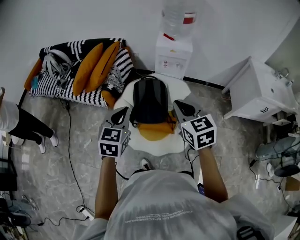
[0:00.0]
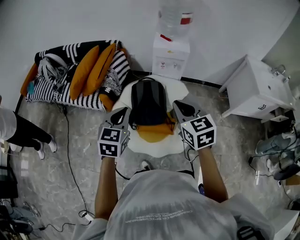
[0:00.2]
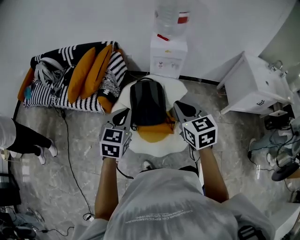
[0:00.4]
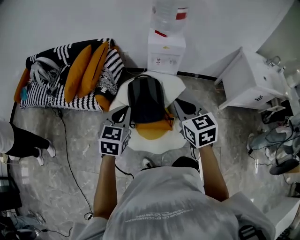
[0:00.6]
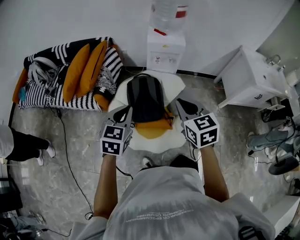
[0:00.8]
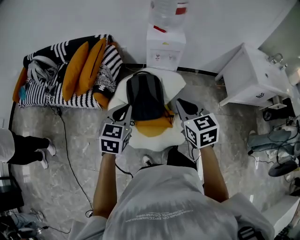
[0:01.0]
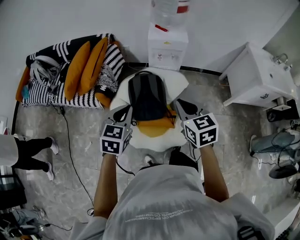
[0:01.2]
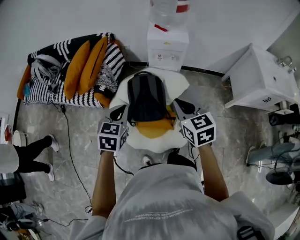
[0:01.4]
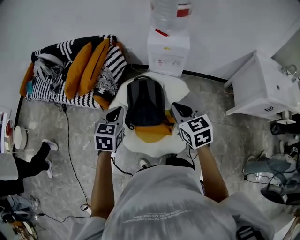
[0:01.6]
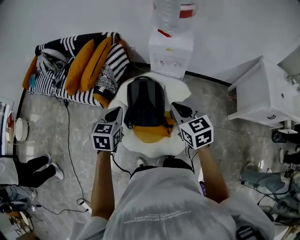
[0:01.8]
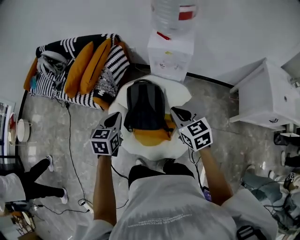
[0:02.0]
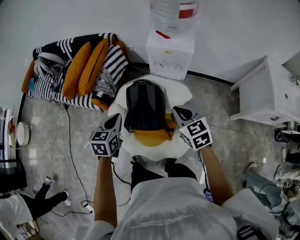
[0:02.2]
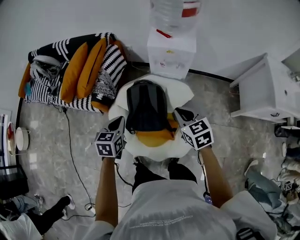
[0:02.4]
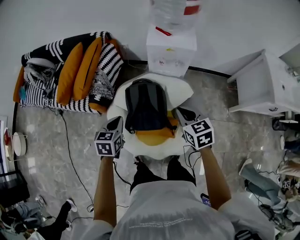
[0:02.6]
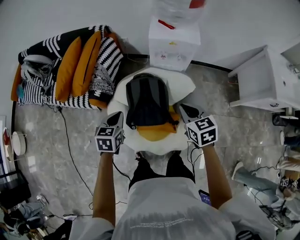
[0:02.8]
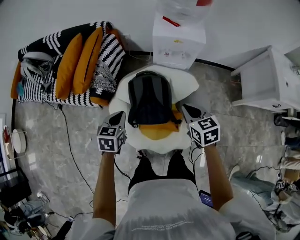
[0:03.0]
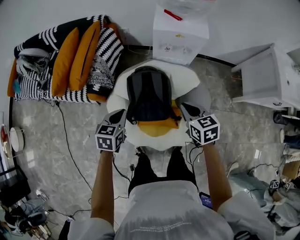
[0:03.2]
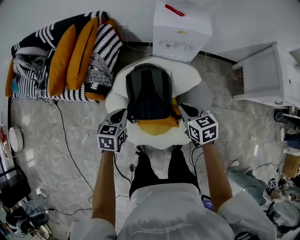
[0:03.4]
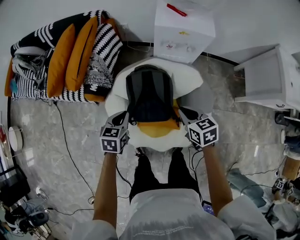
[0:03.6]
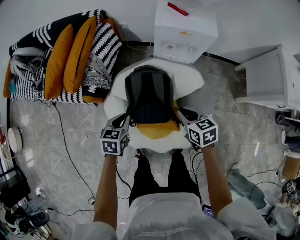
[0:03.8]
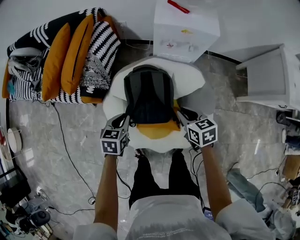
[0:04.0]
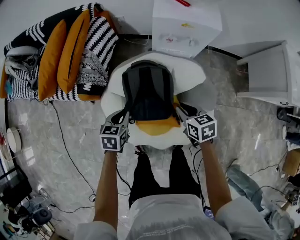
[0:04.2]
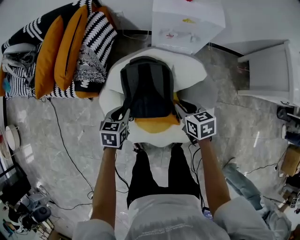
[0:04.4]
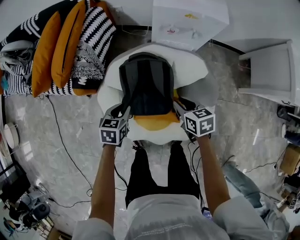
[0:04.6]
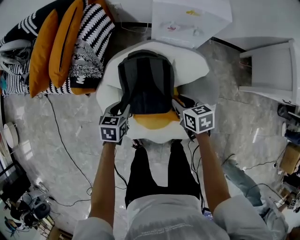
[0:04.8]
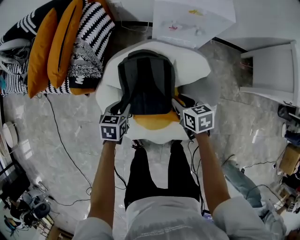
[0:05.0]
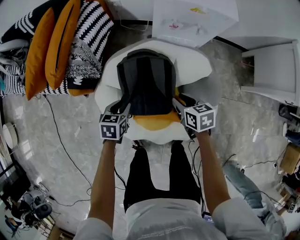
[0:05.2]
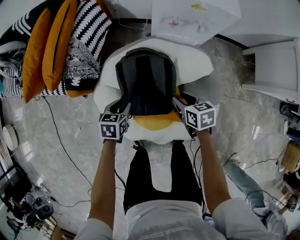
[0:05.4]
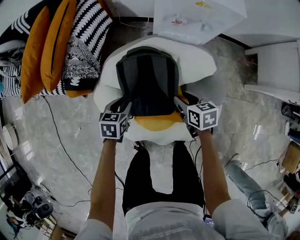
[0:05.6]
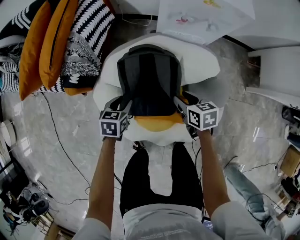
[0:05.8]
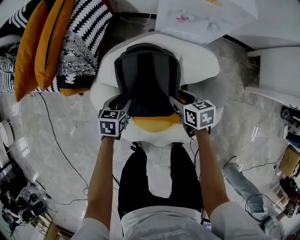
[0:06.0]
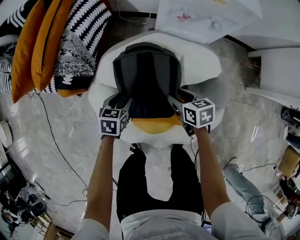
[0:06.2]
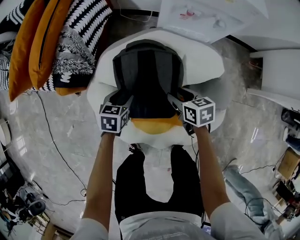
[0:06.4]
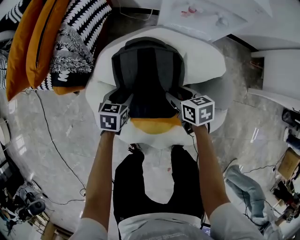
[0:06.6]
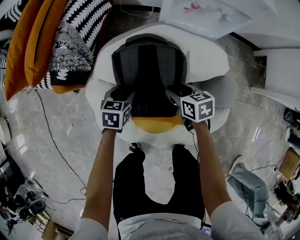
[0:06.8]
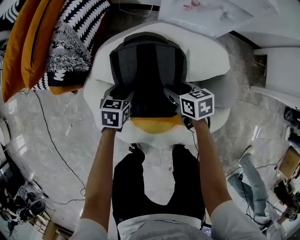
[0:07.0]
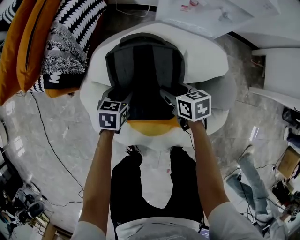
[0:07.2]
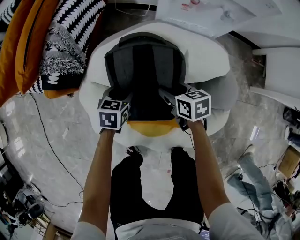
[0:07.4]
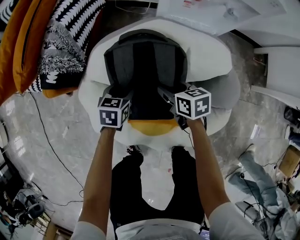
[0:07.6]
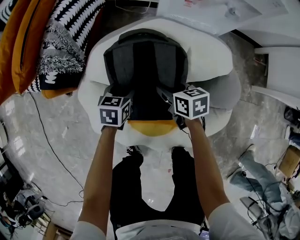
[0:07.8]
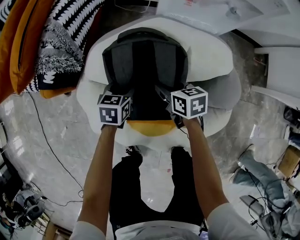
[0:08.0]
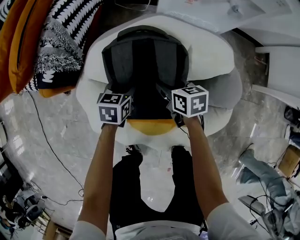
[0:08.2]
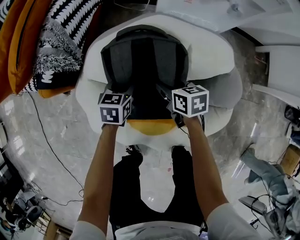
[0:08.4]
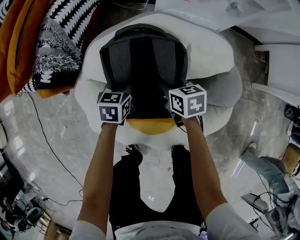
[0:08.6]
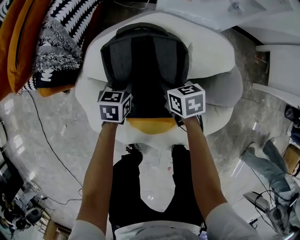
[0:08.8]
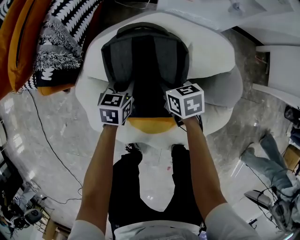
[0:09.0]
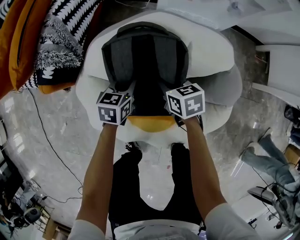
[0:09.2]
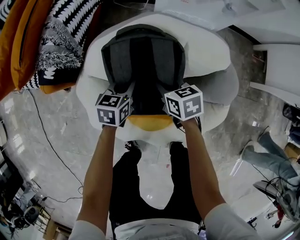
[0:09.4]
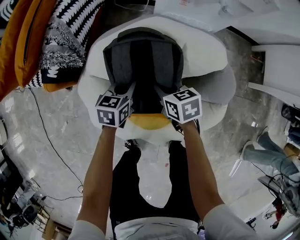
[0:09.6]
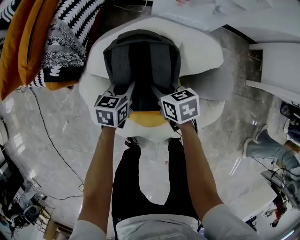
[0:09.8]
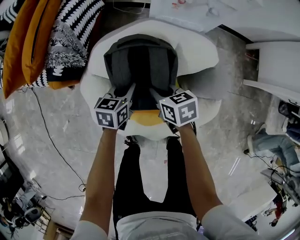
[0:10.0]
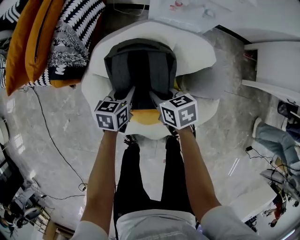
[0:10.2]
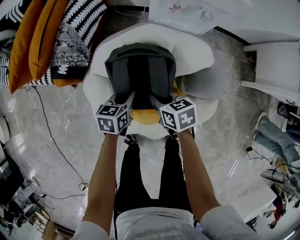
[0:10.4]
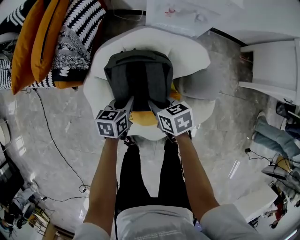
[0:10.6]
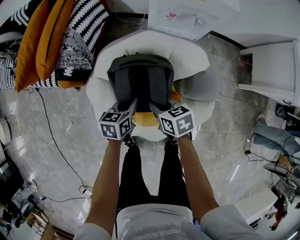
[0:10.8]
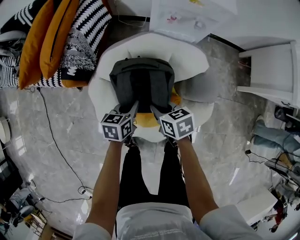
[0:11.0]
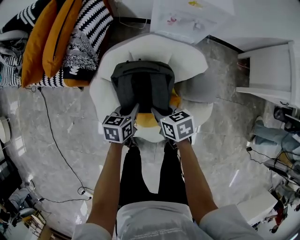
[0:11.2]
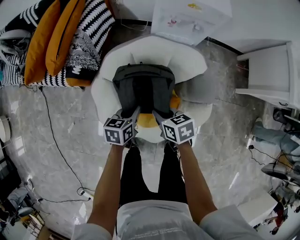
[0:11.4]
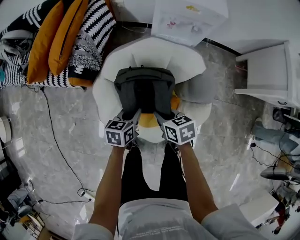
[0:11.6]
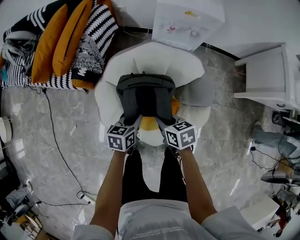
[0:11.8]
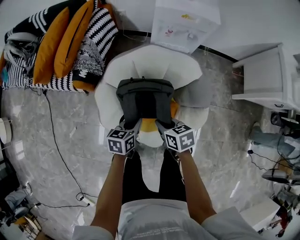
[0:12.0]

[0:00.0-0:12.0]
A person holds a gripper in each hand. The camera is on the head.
0:00.0 to 0:01.6: The right gripper travels forward, downward and to the right by about 15 cm; the left gripper heads forward and downward, covering some 15 cm.
0:01.6 to 0:03.0: Both grippers travel together downward and forward, about 15 cm.
0:03.0 to 0:04.4: Both grippers travel together downward, approximately 15 cm.
0:04.4 to 0:06.0: The two grippers go approximately 15 cm downward. The left gripper opens up, while the right gripper opens up.
0:06.0 to 0:07.6: Both grippers move downward, roughly 10 cm.
0:07.6 to 0:09.0: The left gripper closes its fingers. The right gripper closes up.
0:09.0 to 0:10.4: Both grippers move upward and backward, approximately 15 cm.
0:10.4 to 0:12.0: The grippers both shift backward and upward by some 15 cm.

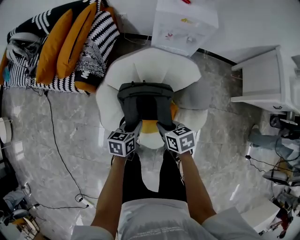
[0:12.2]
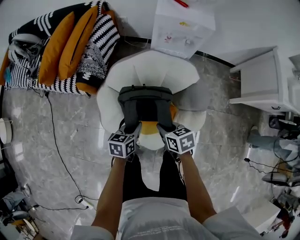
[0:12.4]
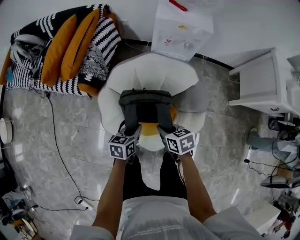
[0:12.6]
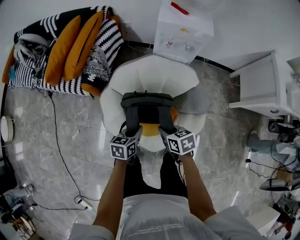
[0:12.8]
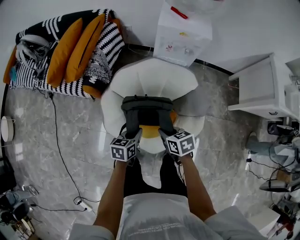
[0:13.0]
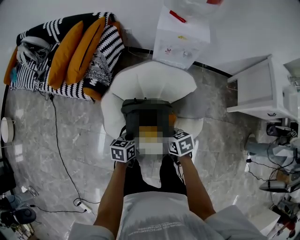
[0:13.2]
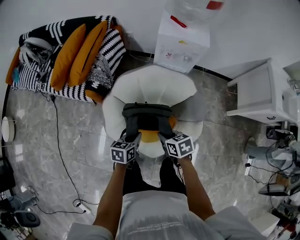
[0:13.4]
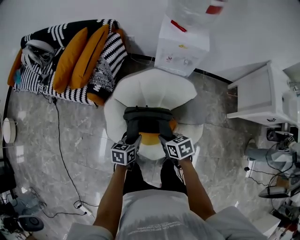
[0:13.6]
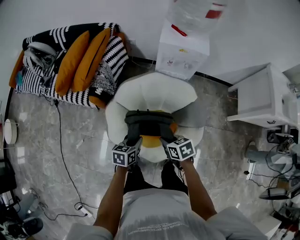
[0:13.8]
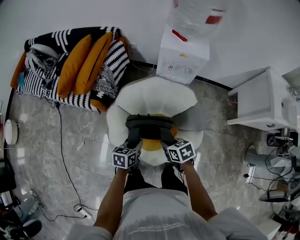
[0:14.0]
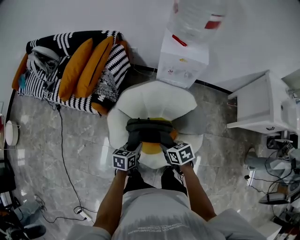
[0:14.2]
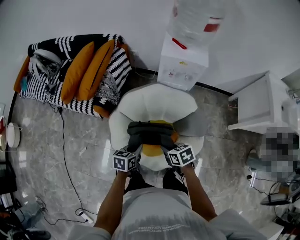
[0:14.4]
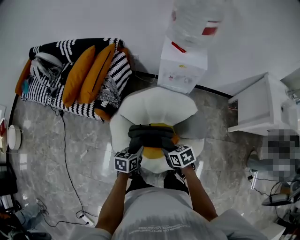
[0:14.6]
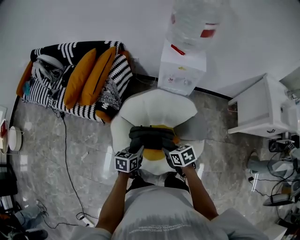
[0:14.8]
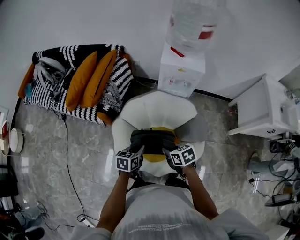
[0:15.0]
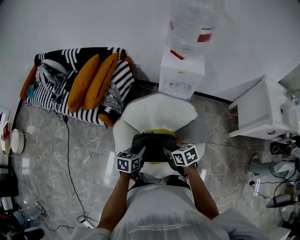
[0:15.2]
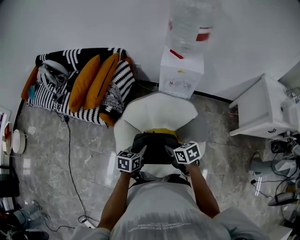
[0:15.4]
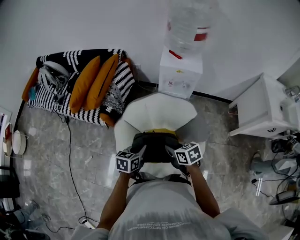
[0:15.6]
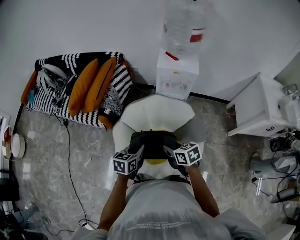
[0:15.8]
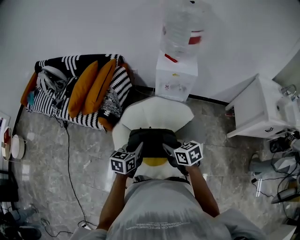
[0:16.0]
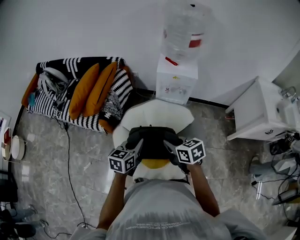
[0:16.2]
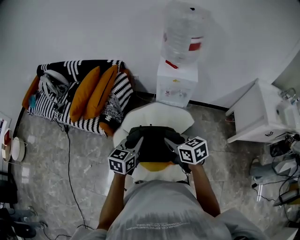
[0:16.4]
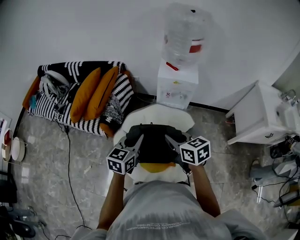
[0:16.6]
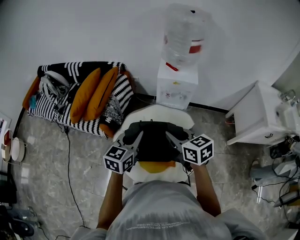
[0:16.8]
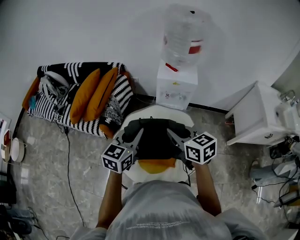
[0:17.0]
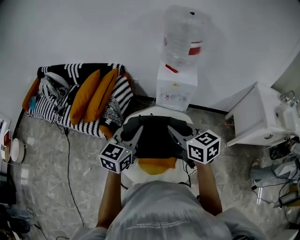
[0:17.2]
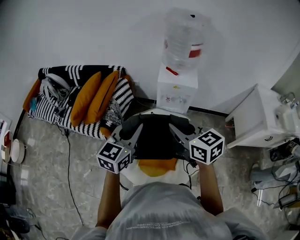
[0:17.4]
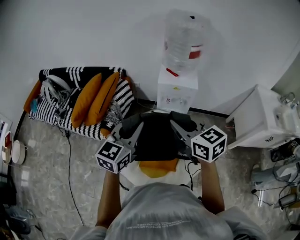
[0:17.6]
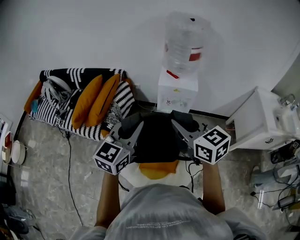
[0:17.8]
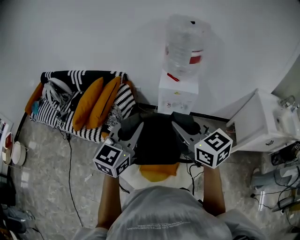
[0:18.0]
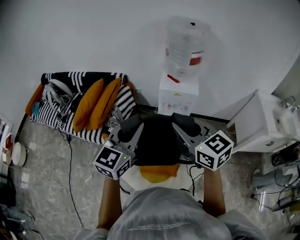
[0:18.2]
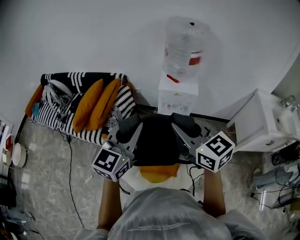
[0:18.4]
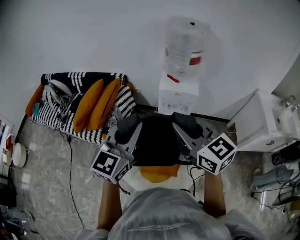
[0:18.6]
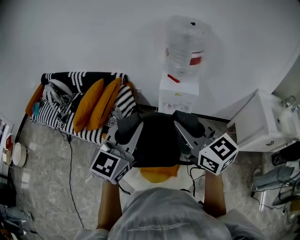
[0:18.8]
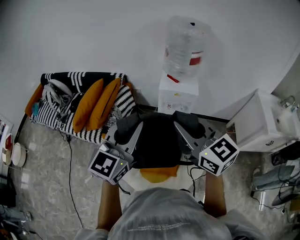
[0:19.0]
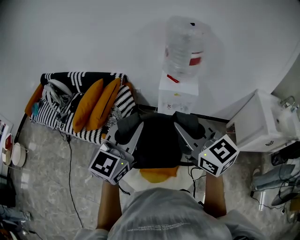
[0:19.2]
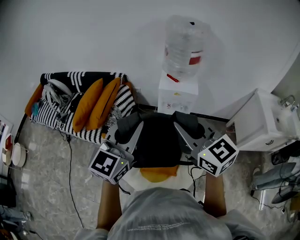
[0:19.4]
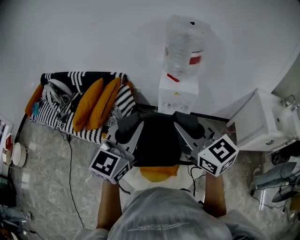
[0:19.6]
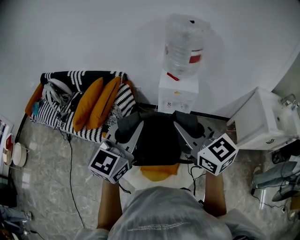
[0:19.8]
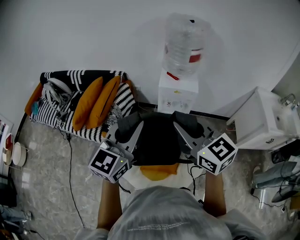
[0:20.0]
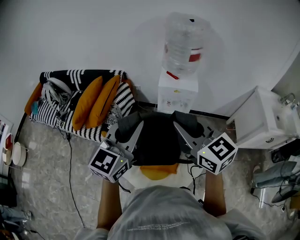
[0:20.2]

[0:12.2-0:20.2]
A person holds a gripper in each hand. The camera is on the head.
0:12.2 to 0:13.8: The grippers both shift upward by approximately 5 cm.
0:13.8 to 0:15.4: Both grippers move upward, about 5 cm.
0:15.4 to 0:17.0: Both grippers move upward, some 20 cm. The right gripper swivels some 30 degrees, while the left gripper swivels roughly 30 degrees.
0:17.0 to 0:18.6: Both grippers move upward, approximately 15 cm. The left gripper turns by approximately 20 degrees, while the right gripper swivels some 20 degrees.
0:18.6 to 0:20.2: Both grippers stay put.

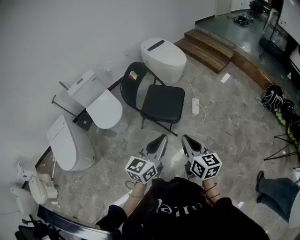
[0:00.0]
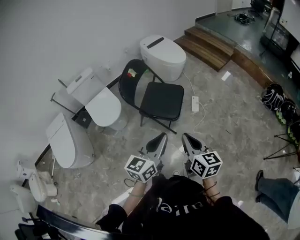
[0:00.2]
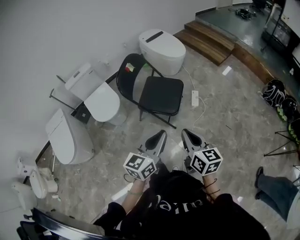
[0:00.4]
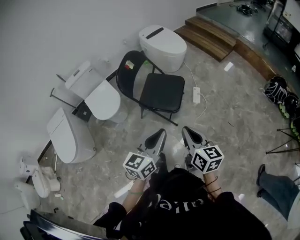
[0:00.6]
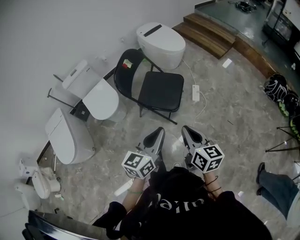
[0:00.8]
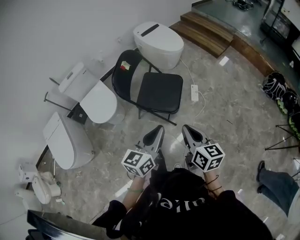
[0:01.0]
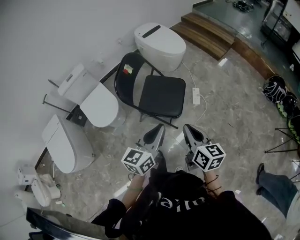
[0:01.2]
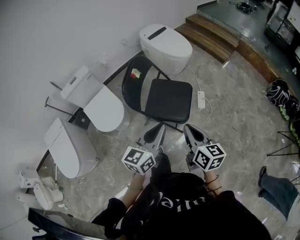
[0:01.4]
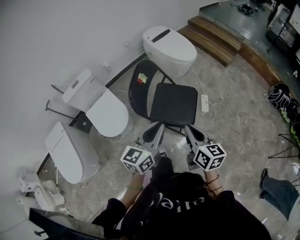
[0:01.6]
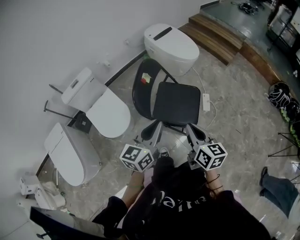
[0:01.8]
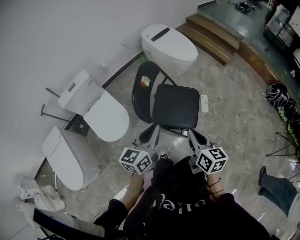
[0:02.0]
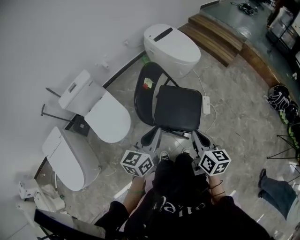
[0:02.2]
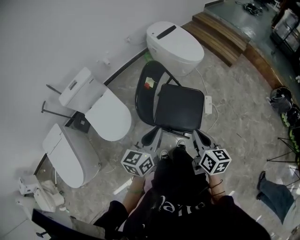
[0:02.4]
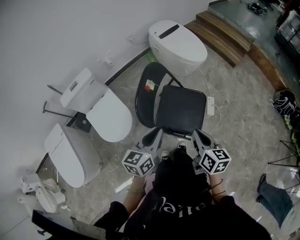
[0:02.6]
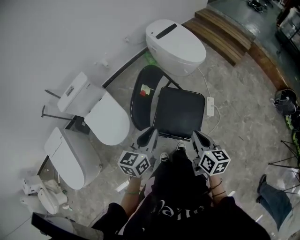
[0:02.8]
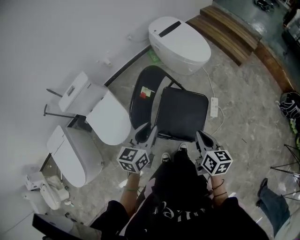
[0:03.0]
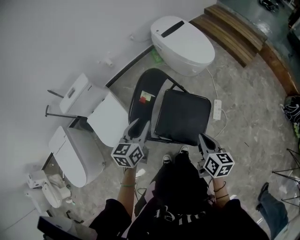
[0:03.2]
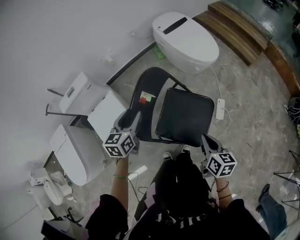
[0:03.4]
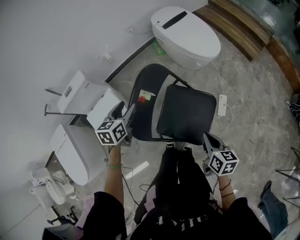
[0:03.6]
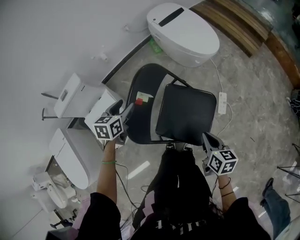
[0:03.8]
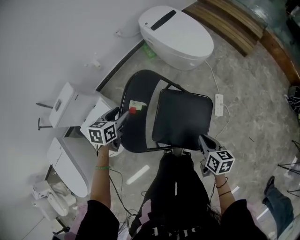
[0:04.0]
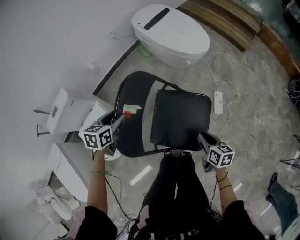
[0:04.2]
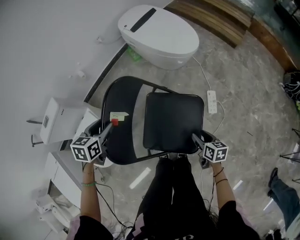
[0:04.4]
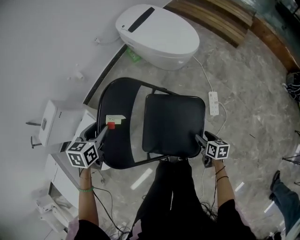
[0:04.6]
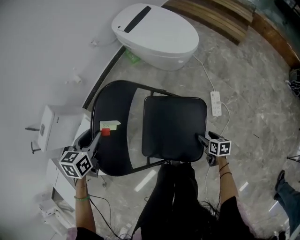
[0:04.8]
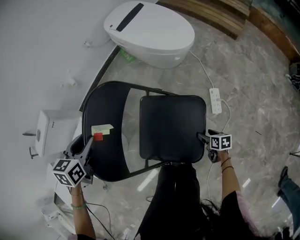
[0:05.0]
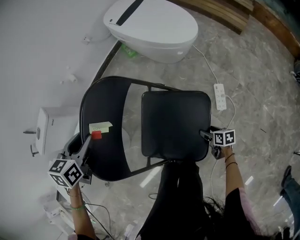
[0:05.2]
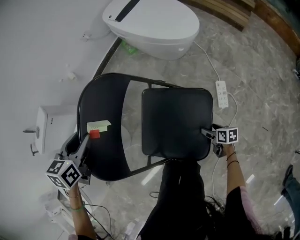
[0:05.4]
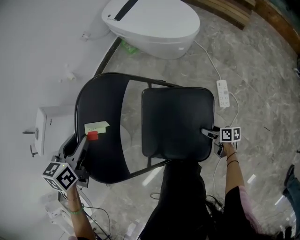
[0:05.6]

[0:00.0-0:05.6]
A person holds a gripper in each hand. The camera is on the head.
0:00.0 to 0:01.4: Both grippers travel together forward and to the left, some 20 cm.
0:01.4 to 0:02.8: The left gripper shifts roughly 25 cm forward and to the left; the right gripper goes some 20 cm forward.
0:02.8 to 0:04.2: The left gripper moves forward and downward, some 30 cm, tips its fingers downward by some 30 degrees, and opens. Meanwhile the right gripper shifts approximately 25 cm downward and forward.
0:04.2 to 0:05.6: The right gripper travels downward by some 30 cm, changes its angle by roughly 30 degrees, and opens.
